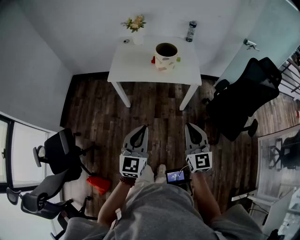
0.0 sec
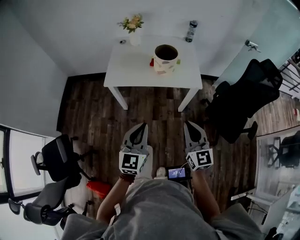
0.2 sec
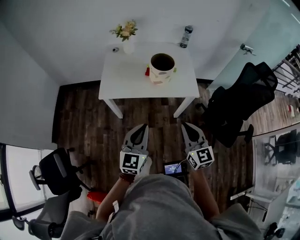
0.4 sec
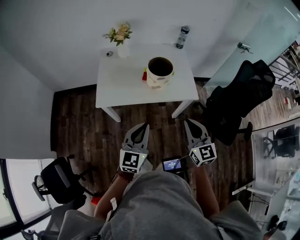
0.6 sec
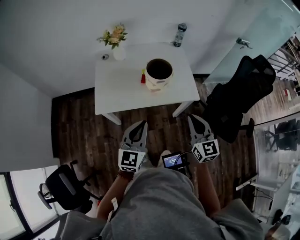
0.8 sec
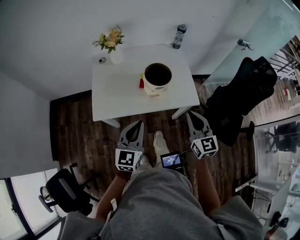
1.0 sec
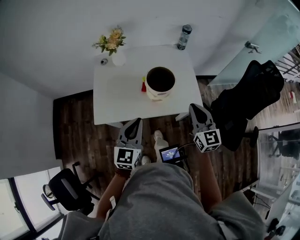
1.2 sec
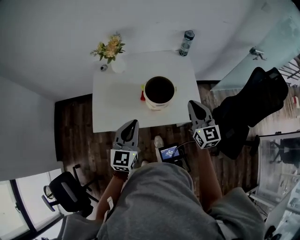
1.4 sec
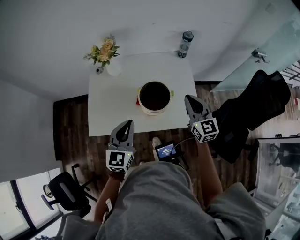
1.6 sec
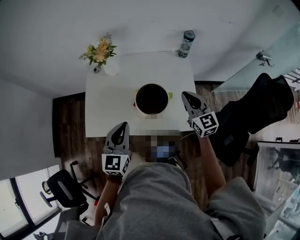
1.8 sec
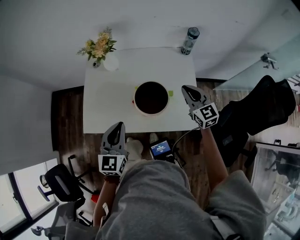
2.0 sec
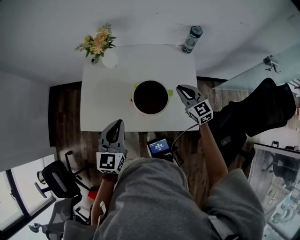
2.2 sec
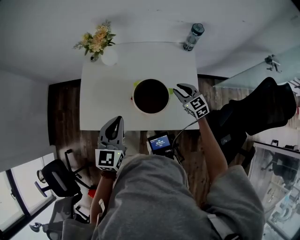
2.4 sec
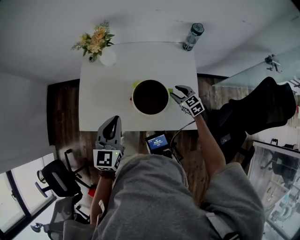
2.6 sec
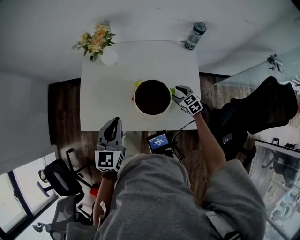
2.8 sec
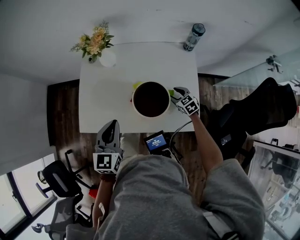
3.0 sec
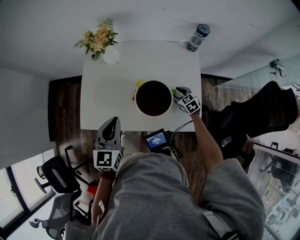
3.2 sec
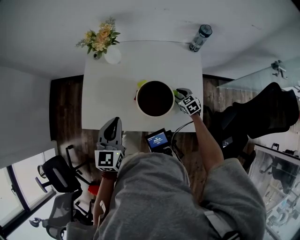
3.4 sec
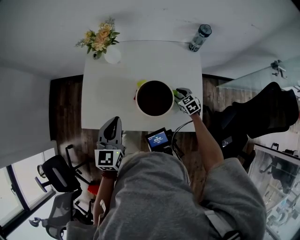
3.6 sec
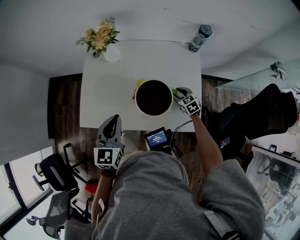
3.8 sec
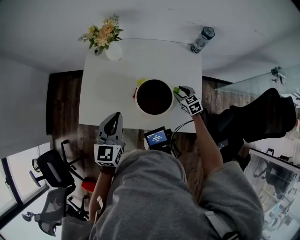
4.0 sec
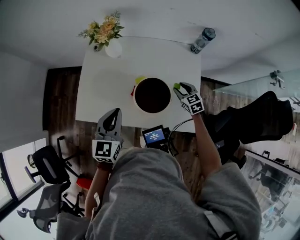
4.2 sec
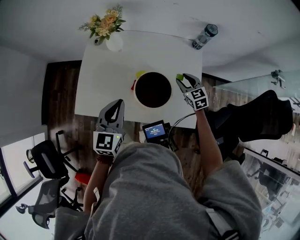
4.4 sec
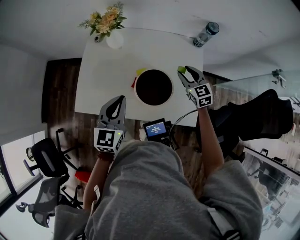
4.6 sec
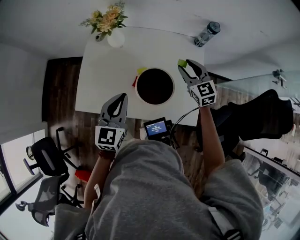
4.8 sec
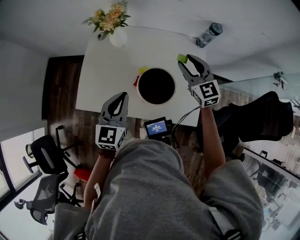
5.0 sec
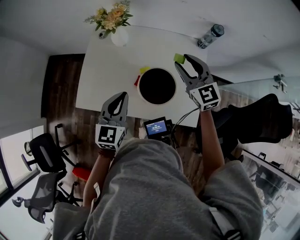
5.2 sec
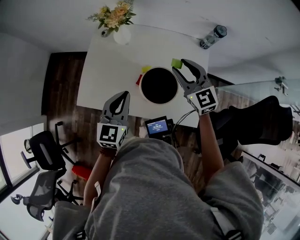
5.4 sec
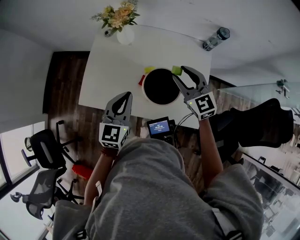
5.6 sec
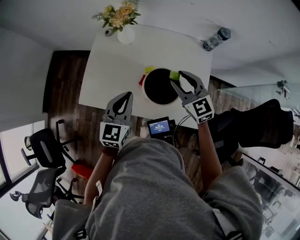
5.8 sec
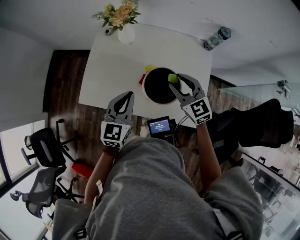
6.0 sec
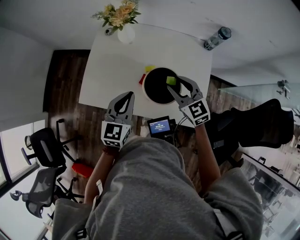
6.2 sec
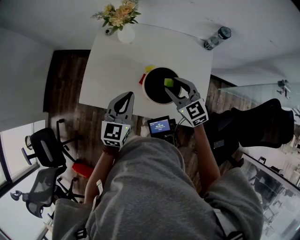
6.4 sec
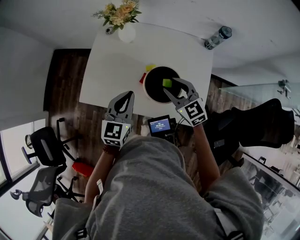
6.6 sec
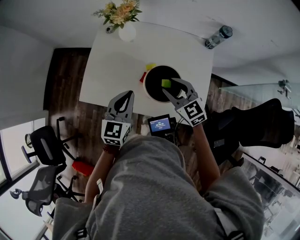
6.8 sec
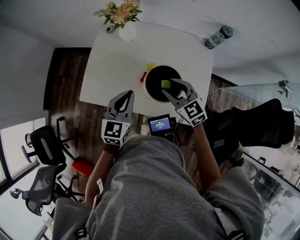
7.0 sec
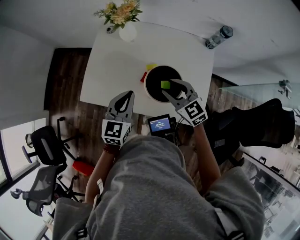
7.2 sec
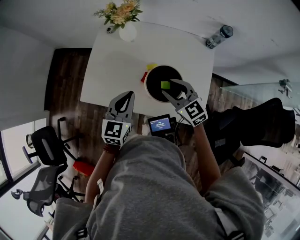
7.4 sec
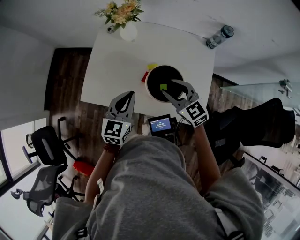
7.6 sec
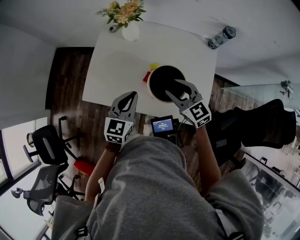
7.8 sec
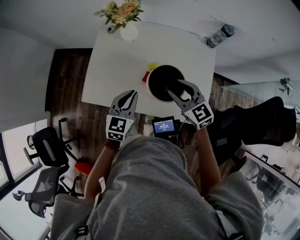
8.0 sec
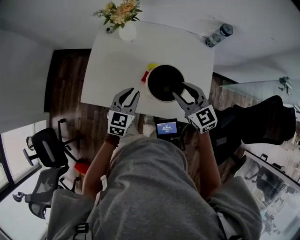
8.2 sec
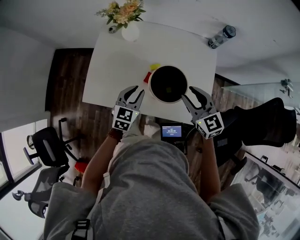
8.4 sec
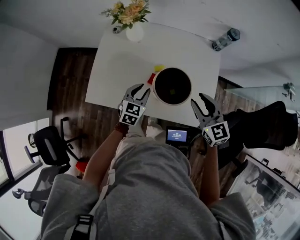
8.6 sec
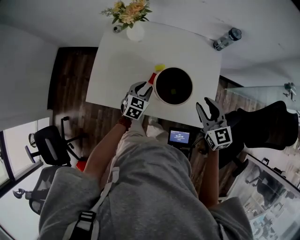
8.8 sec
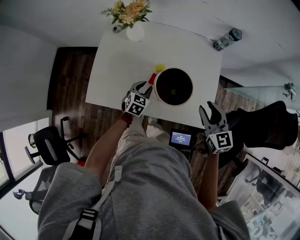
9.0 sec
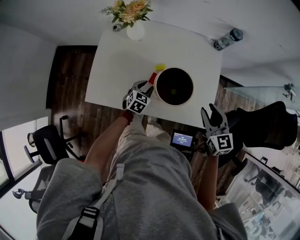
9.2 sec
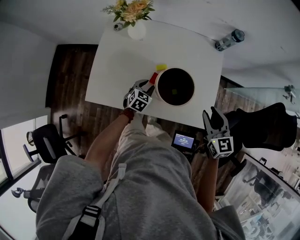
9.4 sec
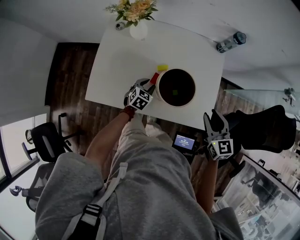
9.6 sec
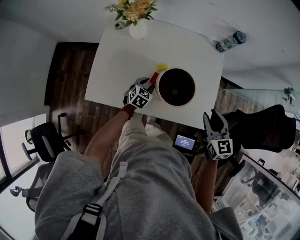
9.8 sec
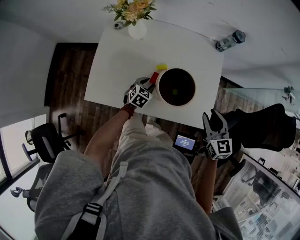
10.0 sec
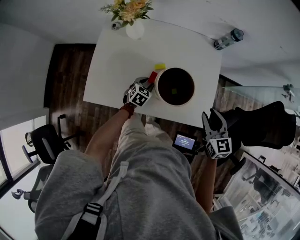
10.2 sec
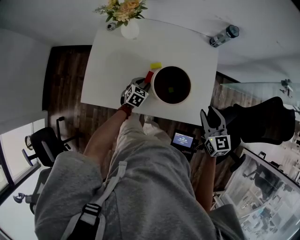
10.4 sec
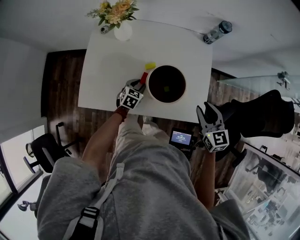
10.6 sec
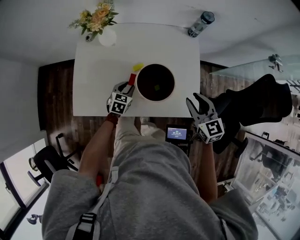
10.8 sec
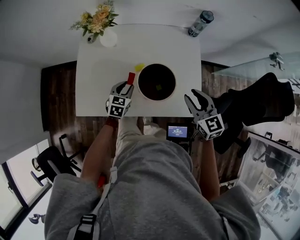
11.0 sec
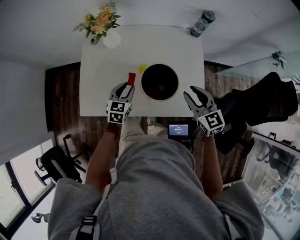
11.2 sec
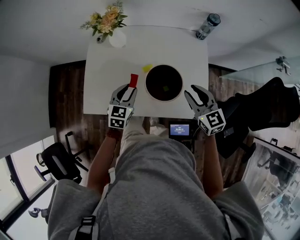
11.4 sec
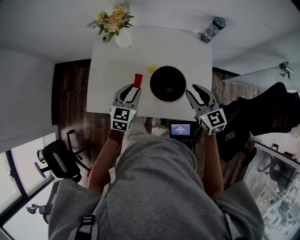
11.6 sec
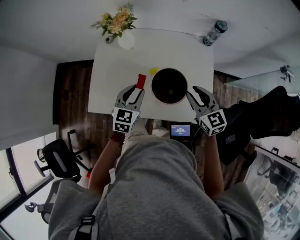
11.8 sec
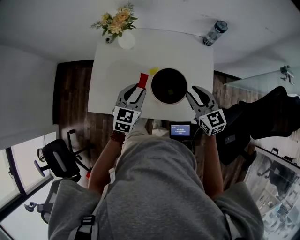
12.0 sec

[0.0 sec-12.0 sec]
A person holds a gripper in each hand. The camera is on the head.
0.0 sec to 1.6 sec: The pair of grippers is taken forward, approximately 50 cm.
1.6 sec to 3.0 sec: The left gripper heads forward, covering some 5 cm; the right gripper travels downward by approximately 30 cm, points its fingers some 40 degrees further downward, and opens up.
3.0 sec to 4.4 sec: The right gripper moves upward, some 10 cm.
4.4 sec to 6.0 sec: The right gripper goes roughly 15 cm upward and to the left.
6.0 sec to 7.6 sec: The right gripper changes place by some 5 cm.
7.6 sec to 9.0 sec: The left gripper moves downward, some 20 cm, rotates approximately 30 degrees, and opens. Meanwhile the right gripper shifts approximately 15 cm to the right and backward, and changes its angle by some 30 degrees.
9.0 sec to 10.4 sec: The left gripper is displaced downward by about 5 cm.
10.4 sec to 12.0 sec: The left gripper moves upward, approximately 20 cm, and turns by approximately 20 degrees. The right gripper heads to the left and forward, covering some 10 cm.

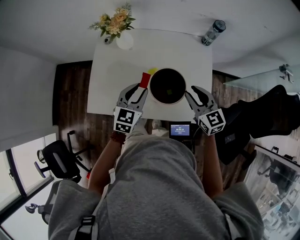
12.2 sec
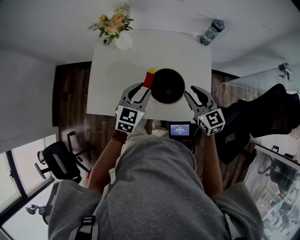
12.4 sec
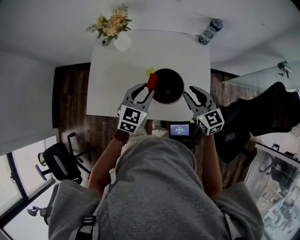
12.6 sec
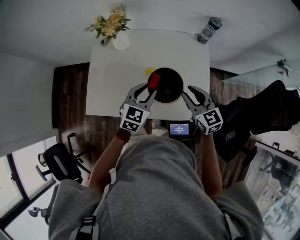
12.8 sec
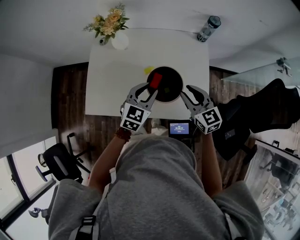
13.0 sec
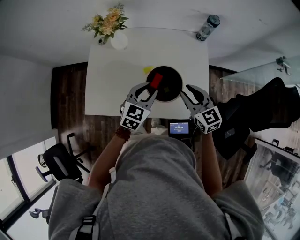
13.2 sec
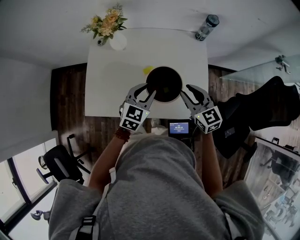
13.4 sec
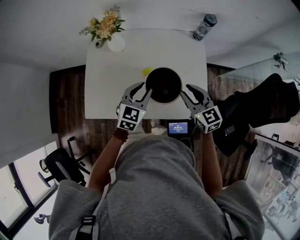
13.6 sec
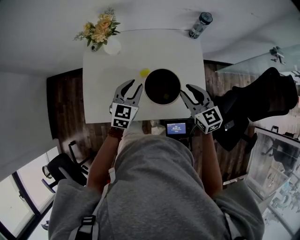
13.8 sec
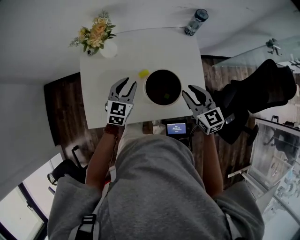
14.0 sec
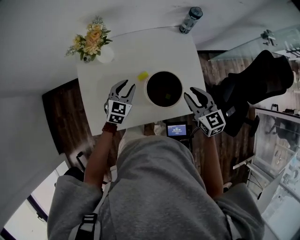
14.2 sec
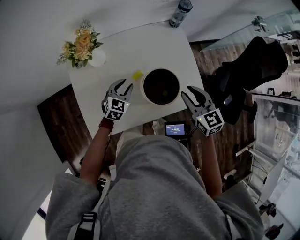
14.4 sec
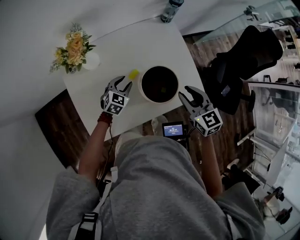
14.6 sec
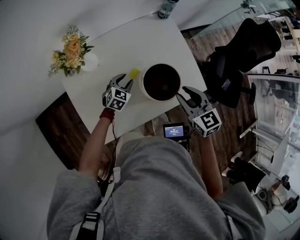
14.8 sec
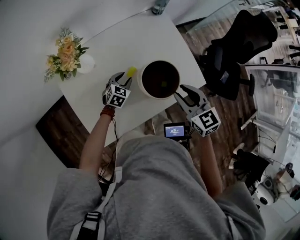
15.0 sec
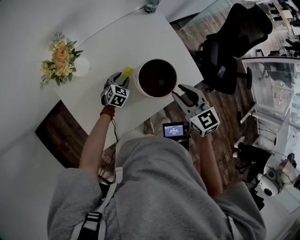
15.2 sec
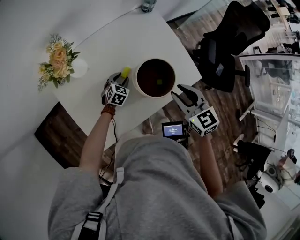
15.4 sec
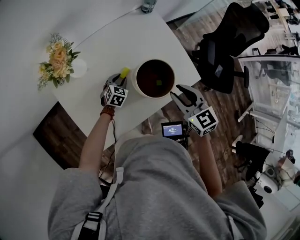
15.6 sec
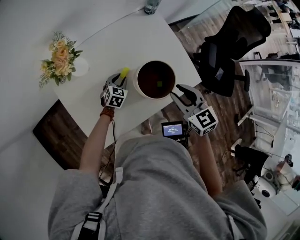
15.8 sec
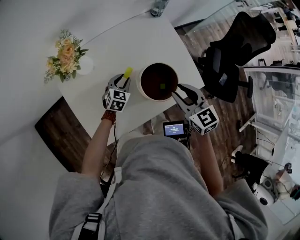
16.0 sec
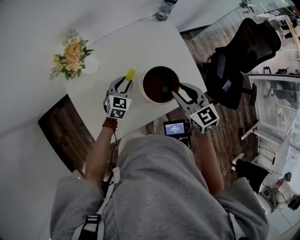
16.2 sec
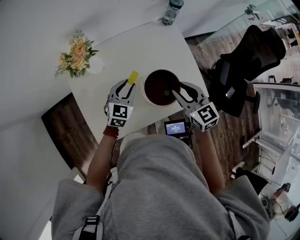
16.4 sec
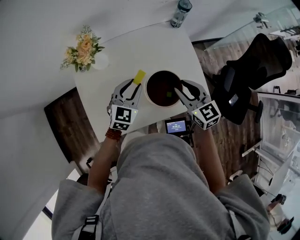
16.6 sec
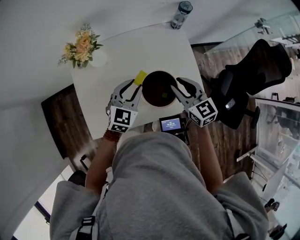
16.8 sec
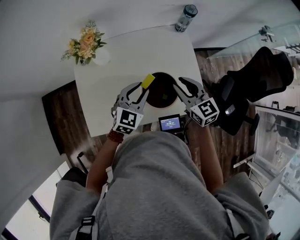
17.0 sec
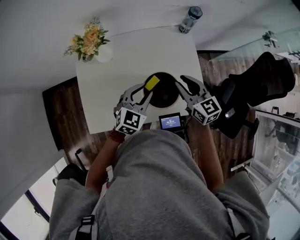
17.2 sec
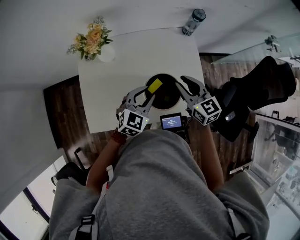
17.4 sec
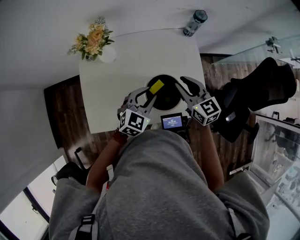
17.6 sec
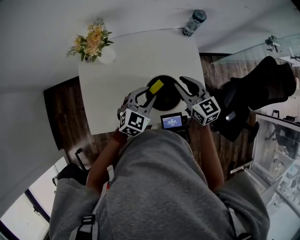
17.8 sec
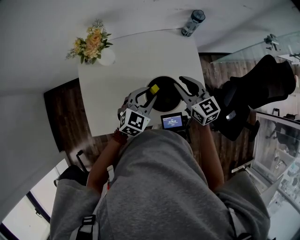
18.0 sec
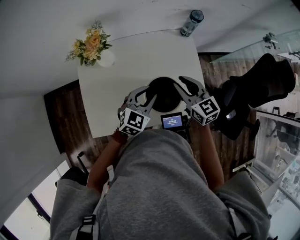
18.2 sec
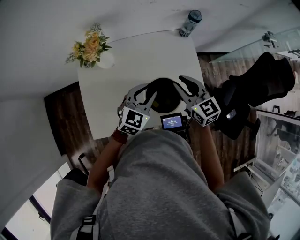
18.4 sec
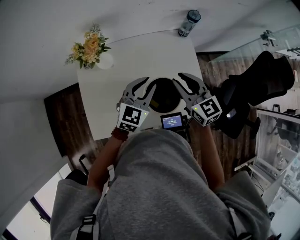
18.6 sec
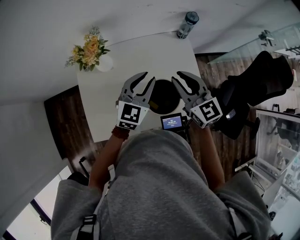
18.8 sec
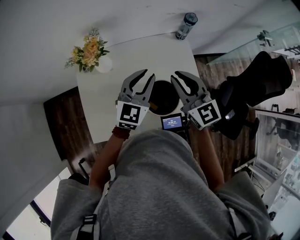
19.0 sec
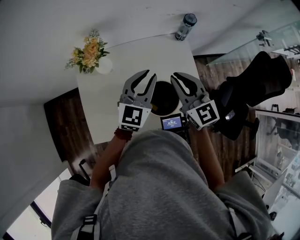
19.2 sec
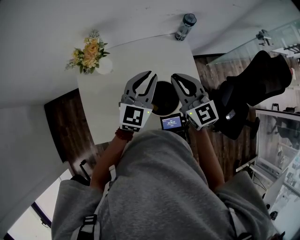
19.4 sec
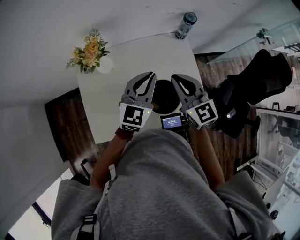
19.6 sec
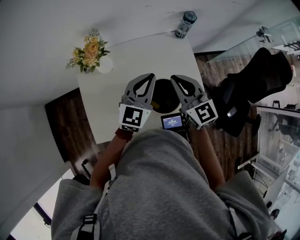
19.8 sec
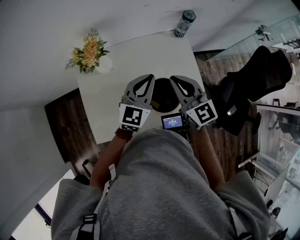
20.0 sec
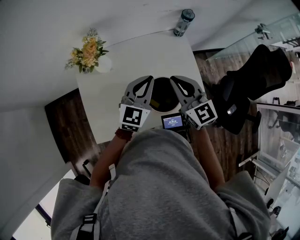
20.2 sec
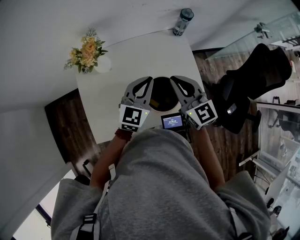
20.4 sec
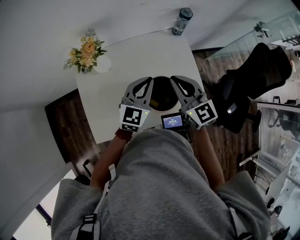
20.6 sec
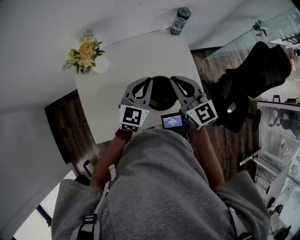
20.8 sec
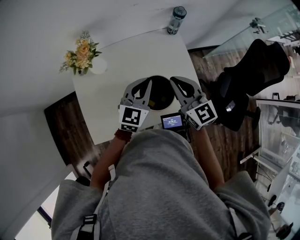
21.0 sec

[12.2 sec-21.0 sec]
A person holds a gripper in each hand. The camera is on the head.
12.2 sec to 13.6 sec: The grippers stay close to where they were, moving slightly.
13.6 sec to 15.2 sec: The right gripper shifts by roughly 5 cm, and rotates about 30 degrees. Meanwhile the left gripper shifts roughly 20 cm downward, and swivels some 40 degrees.
15.2 sec to 16.6 sec: The left gripper travels upward by about 20 cm, and changes its angle by about 20 degrees. The right gripper shifts some 5 cm forward.
16.6 sec to 18.0 sec: The left gripper heads to the right, covering approximately 5 cm.
18.0 sec to 19.6 sec: The right gripper goes roughly 10 cm upward, and closes up. Meanwhile the left gripper goes roughly 15 cm upward and forward, rotates about 20 degrees, and closes.
19.6 sec to 21.0 sec: The left gripper moves about 5 cm.

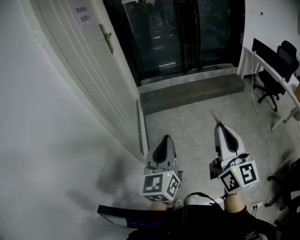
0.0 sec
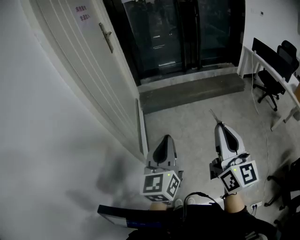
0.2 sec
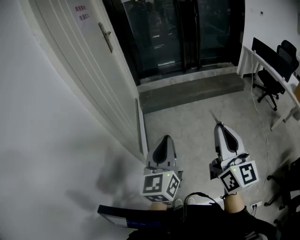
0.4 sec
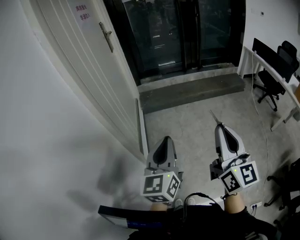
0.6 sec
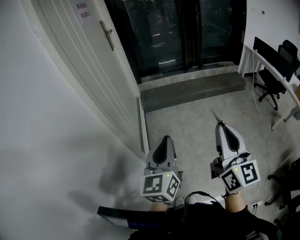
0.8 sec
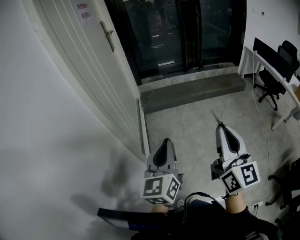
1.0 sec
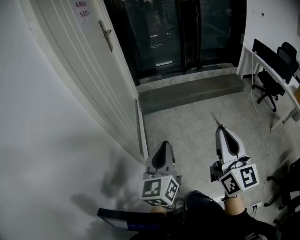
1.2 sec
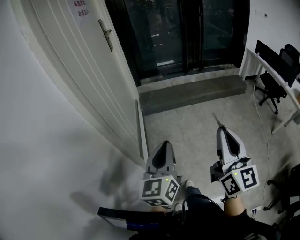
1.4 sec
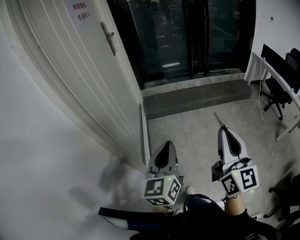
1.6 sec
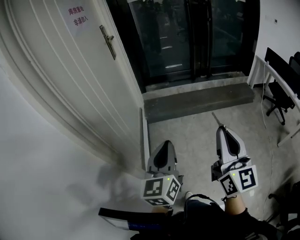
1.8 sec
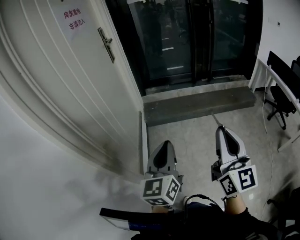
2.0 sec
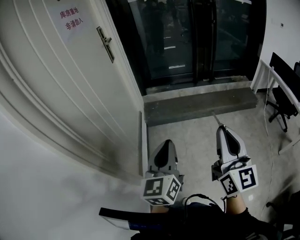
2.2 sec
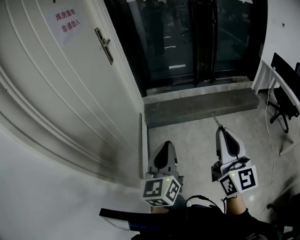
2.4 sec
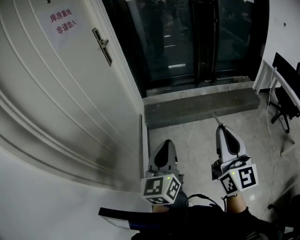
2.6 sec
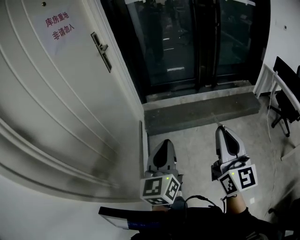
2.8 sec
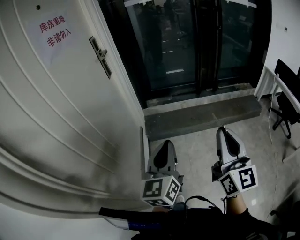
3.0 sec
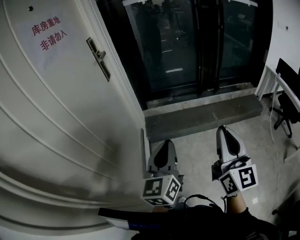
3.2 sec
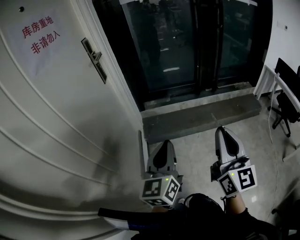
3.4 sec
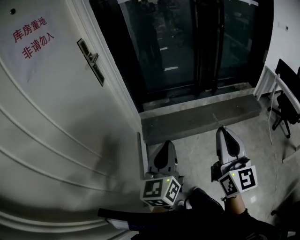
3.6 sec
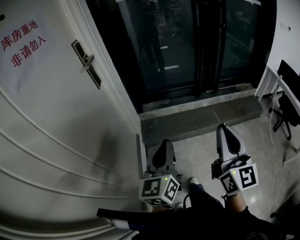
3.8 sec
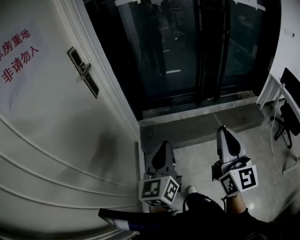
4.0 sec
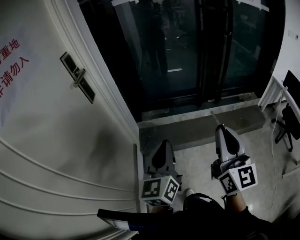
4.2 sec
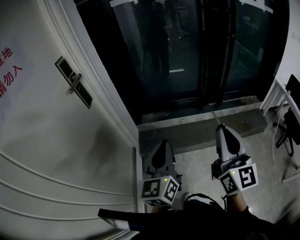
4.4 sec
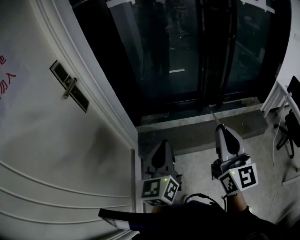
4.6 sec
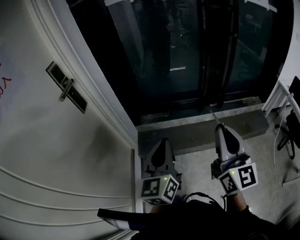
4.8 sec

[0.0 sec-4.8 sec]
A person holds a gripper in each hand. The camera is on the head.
0.0 sec to 1.6 sec: Both grippers move forward, approximately 10 cm.
1.6 sec to 3.2 sec: Both grippers move forward, some 35 cm.
3.2 sec to 4.8 sec: Both grippers travel together forward, about 30 cm.
